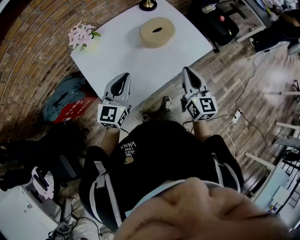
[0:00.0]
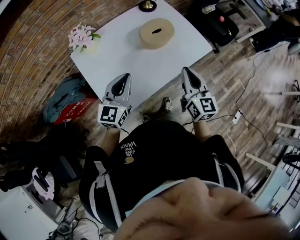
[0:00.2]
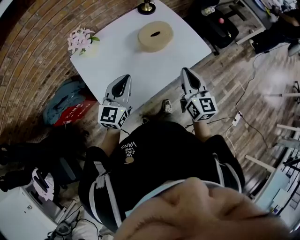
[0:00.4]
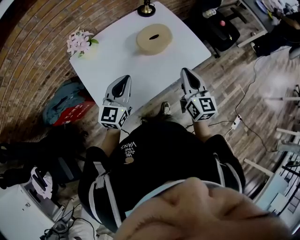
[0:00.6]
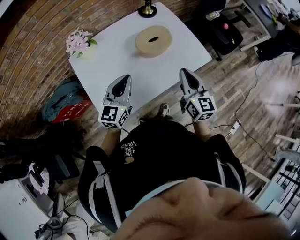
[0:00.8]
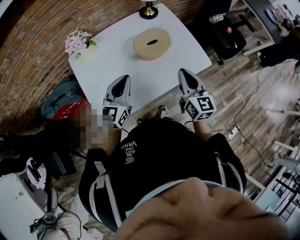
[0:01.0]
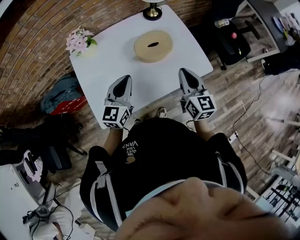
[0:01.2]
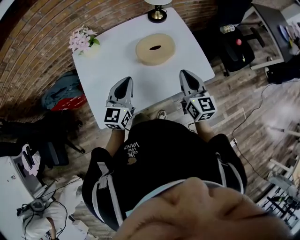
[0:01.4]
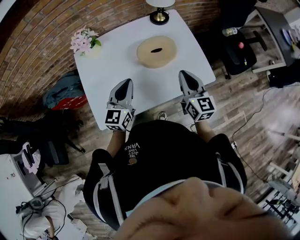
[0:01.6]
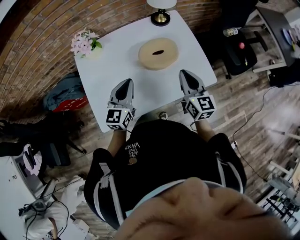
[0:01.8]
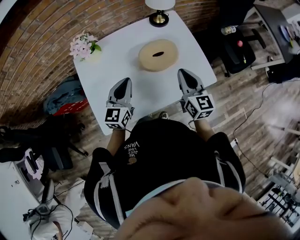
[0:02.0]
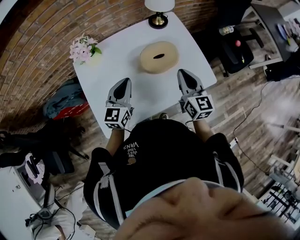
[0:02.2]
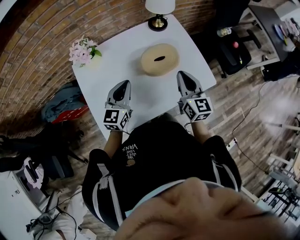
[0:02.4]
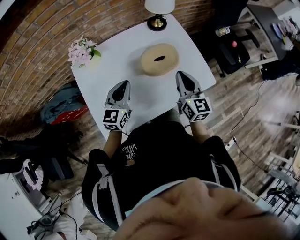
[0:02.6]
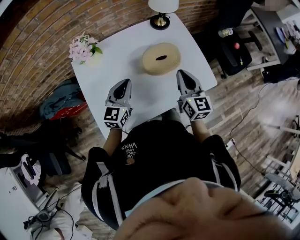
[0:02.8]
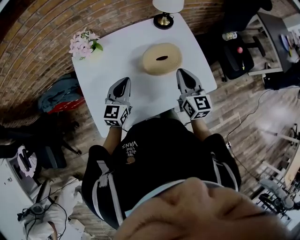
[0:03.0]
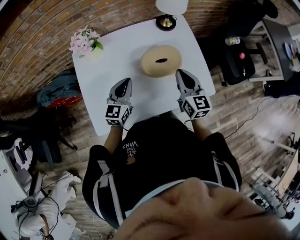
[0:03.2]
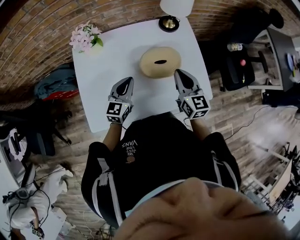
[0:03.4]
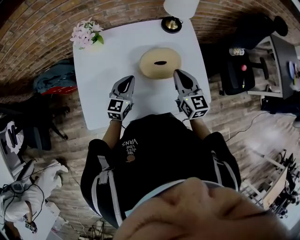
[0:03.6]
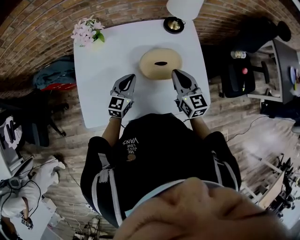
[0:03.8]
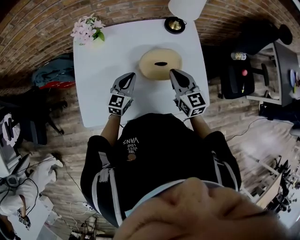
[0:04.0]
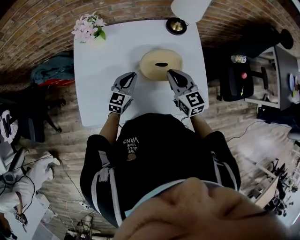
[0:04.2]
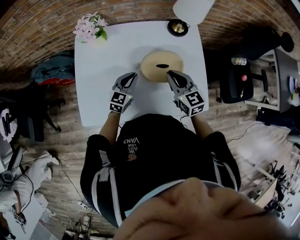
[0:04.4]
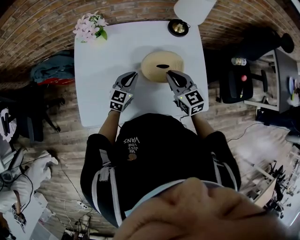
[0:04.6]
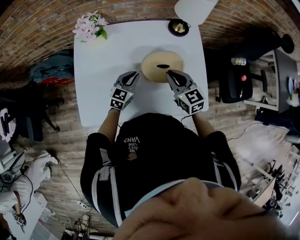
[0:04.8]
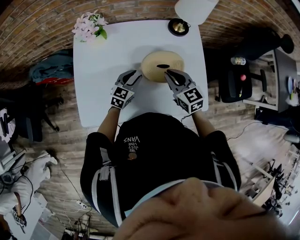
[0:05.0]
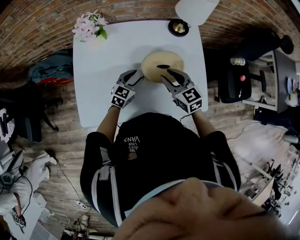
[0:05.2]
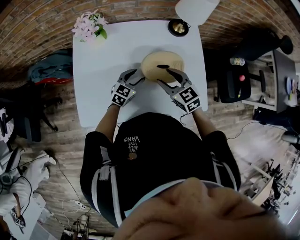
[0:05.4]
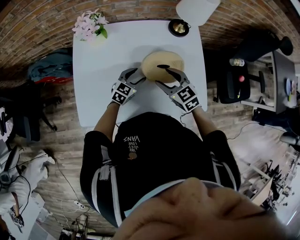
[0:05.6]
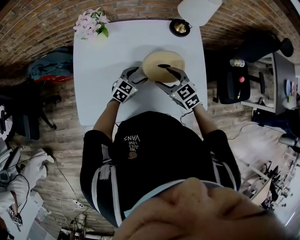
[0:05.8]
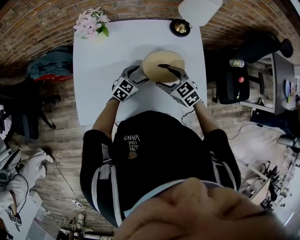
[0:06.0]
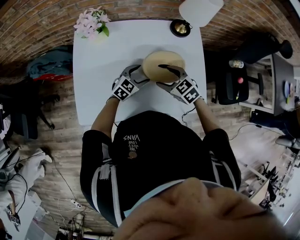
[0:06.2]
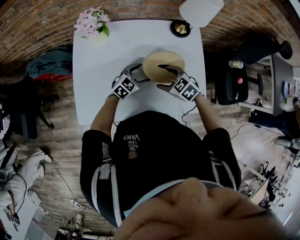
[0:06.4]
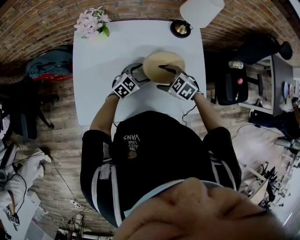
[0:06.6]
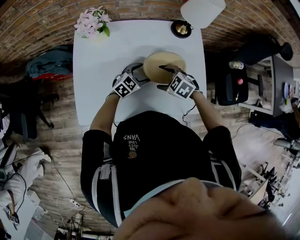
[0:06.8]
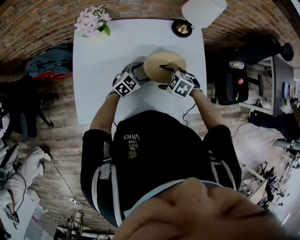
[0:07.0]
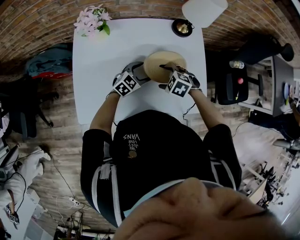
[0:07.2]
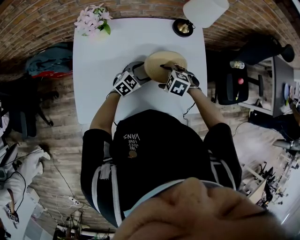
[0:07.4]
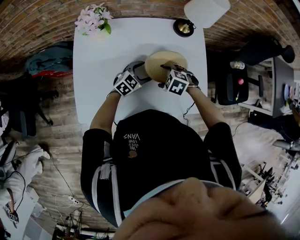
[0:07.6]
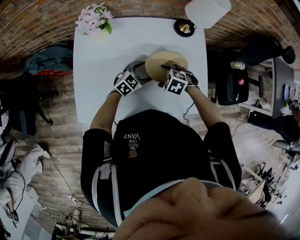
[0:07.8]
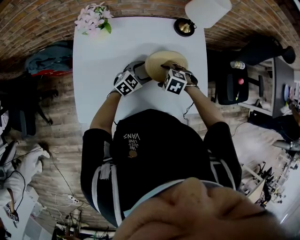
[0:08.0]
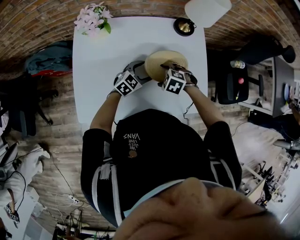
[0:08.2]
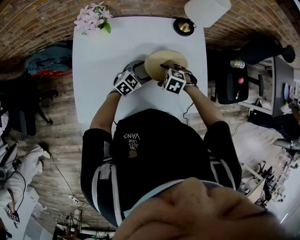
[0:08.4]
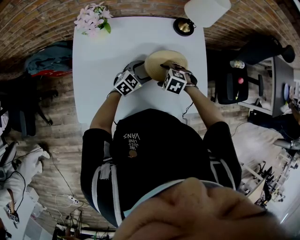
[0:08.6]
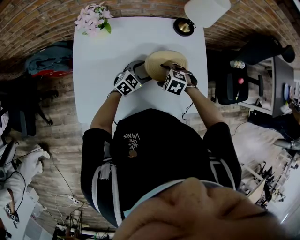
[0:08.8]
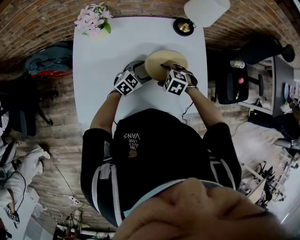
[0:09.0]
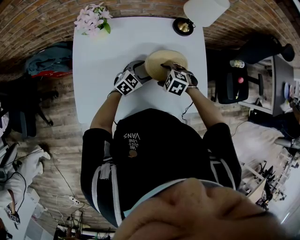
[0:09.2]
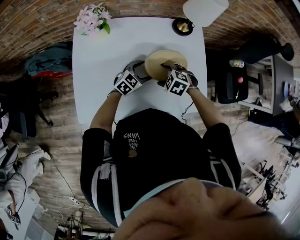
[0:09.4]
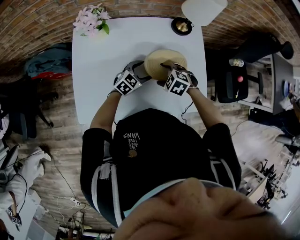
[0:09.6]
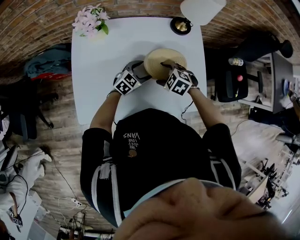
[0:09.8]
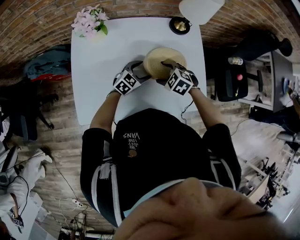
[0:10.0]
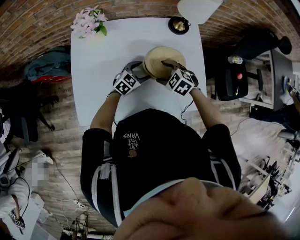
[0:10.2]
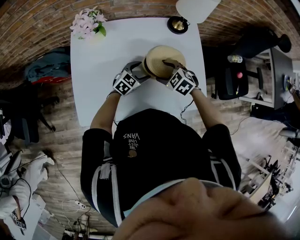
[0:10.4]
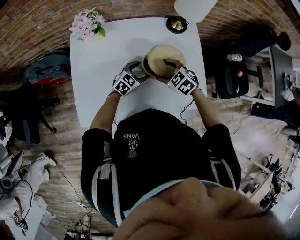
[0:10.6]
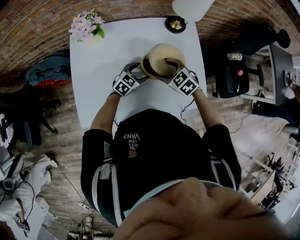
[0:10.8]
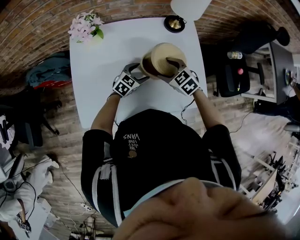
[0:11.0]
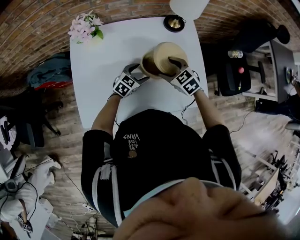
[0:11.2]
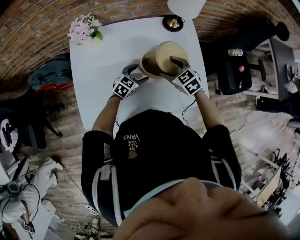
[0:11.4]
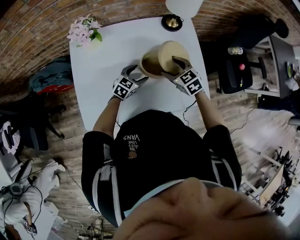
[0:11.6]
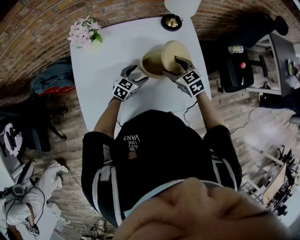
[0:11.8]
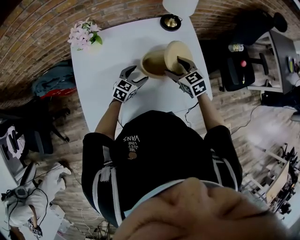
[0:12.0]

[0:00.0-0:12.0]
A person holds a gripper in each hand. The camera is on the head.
0:00.0 to 0:01.6: The two grippers go roughly 15 cm forward and to the right. The right gripper rotates some 20 degrees.
0:01.6 to 0:03.0: Both grippers move forward, some 5 cm.
0:03.0 to 0:04.4: The left gripper is displaced downward and to the right by roughly 10 cm; the right gripper goes some 10 cm forward and downward, and rotates about 30 degrees.
0:04.4 to 0:06.0: Both grippers travel together downward, approximately 5 cm. The left gripper opens its fingers. The right gripper rotates about 30 degrees, and opens.
0:06.0 to 0:07.6: The right gripper shifts approximately 5 cm downward, and points its fingers about 30 degrees further downward.
0:07.6 to 0:09.0: Both grippers stay about where they are.
0:09.0 to 0:10.4: The grippers make only small movements.
0:10.4 to 0:12.0: The right gripper travels to the right by some 5 cm, and swivels roughly 40 degrees.

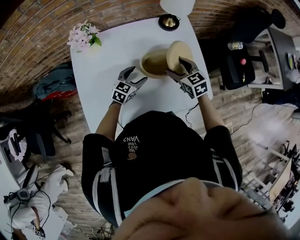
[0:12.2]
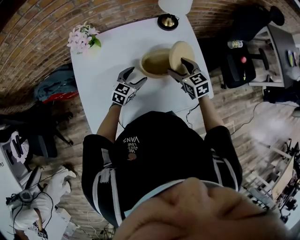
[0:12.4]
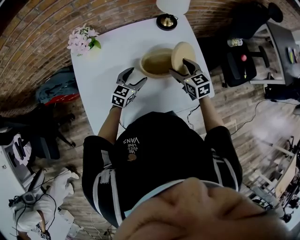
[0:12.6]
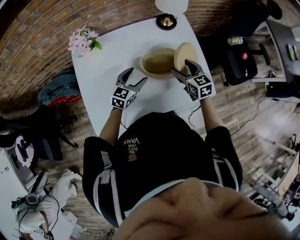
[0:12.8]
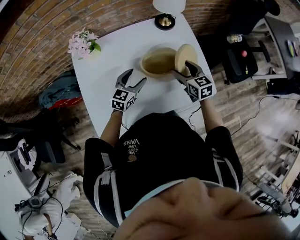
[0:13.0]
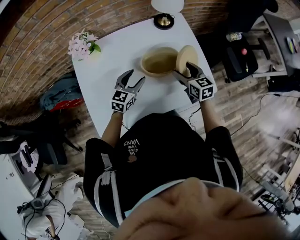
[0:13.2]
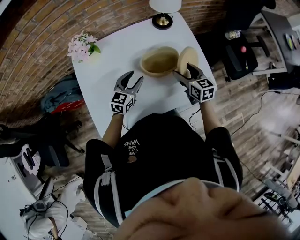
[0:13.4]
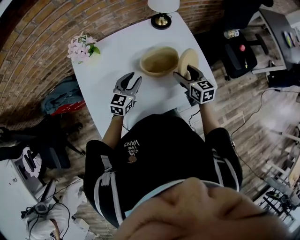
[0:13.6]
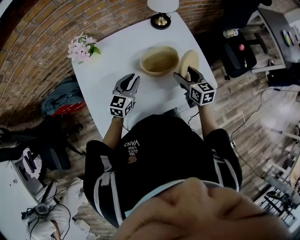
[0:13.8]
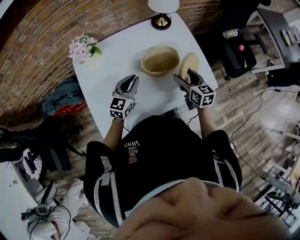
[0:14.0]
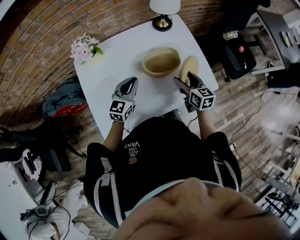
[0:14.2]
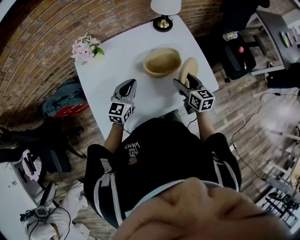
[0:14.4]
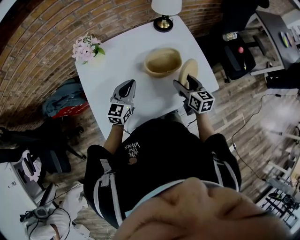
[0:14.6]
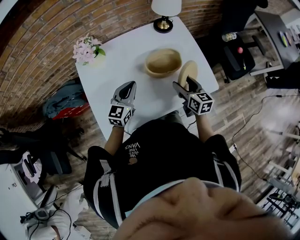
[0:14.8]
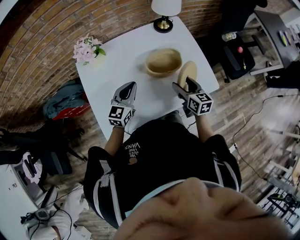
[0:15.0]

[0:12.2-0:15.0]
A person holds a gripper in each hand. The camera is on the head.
0:12.2 to 0:13.6: The left gripper heads upward, covering approximately 5 cm, and closes up. The right gripper ends up some 5 cm from where it was, and turns by approximately 30 degrees.
0:13.6 to 0:15.0: The left gripper shifts by approximately 5 cm, and closes up. Meanwhile the right gripper shifts roughly 5 cm backward.

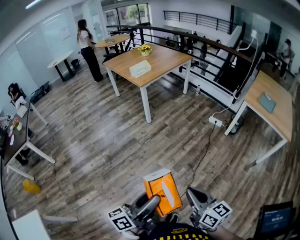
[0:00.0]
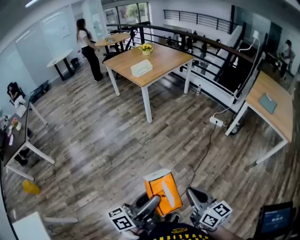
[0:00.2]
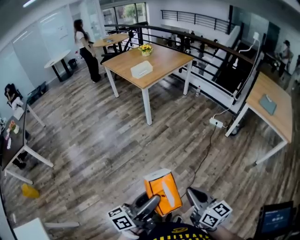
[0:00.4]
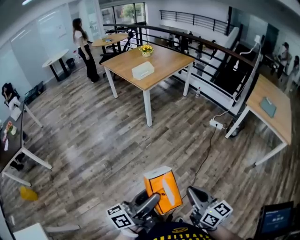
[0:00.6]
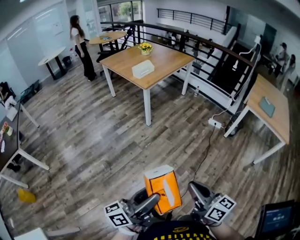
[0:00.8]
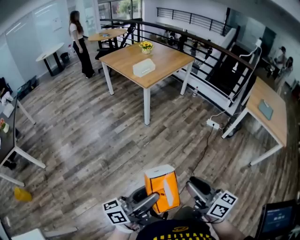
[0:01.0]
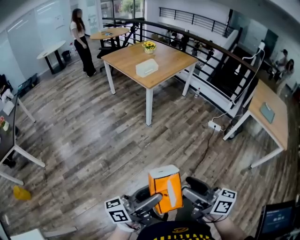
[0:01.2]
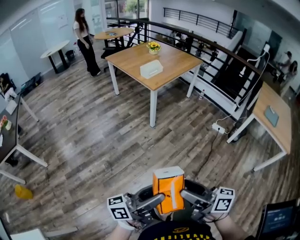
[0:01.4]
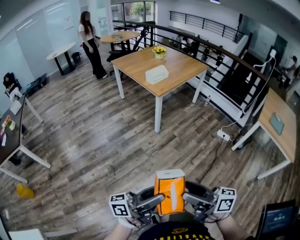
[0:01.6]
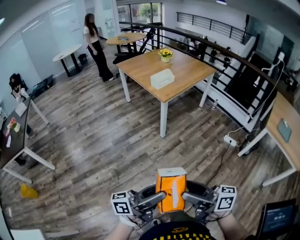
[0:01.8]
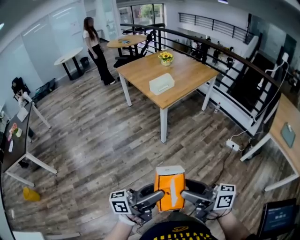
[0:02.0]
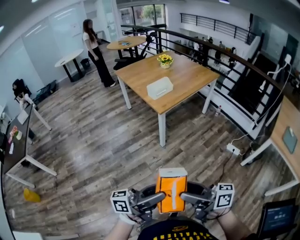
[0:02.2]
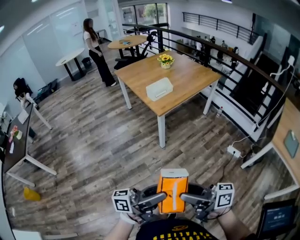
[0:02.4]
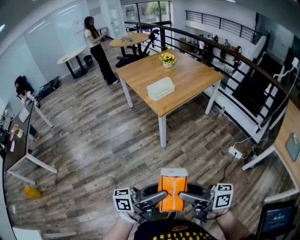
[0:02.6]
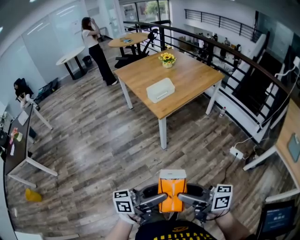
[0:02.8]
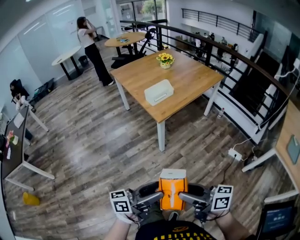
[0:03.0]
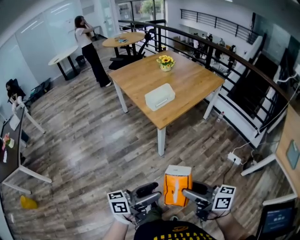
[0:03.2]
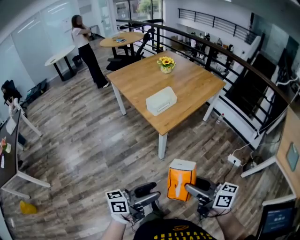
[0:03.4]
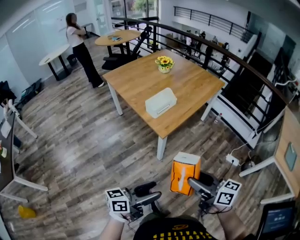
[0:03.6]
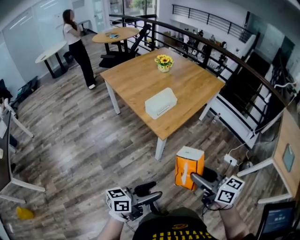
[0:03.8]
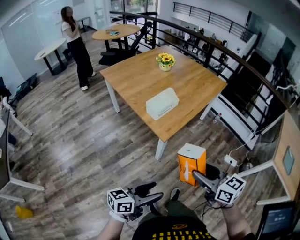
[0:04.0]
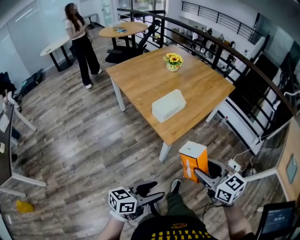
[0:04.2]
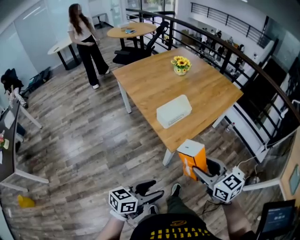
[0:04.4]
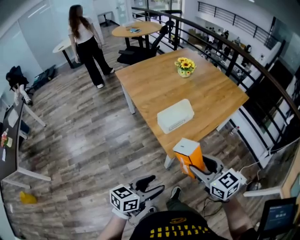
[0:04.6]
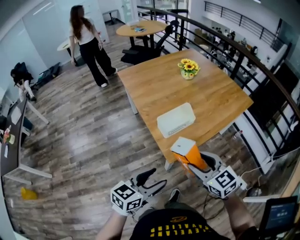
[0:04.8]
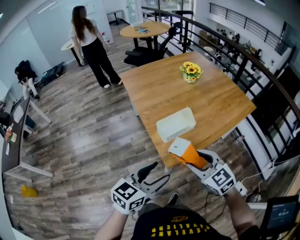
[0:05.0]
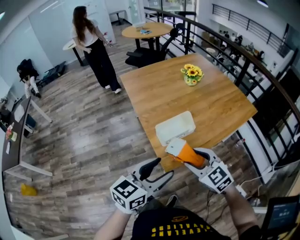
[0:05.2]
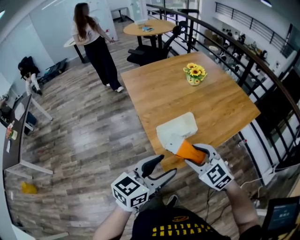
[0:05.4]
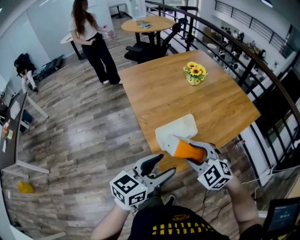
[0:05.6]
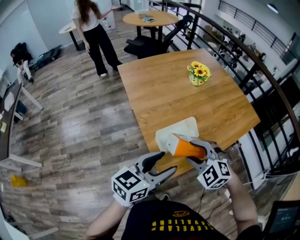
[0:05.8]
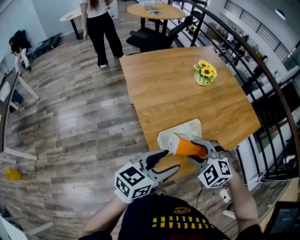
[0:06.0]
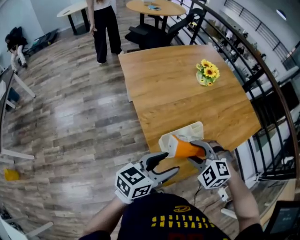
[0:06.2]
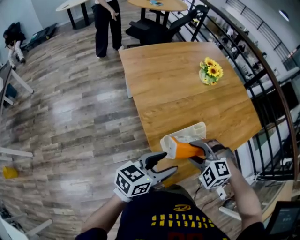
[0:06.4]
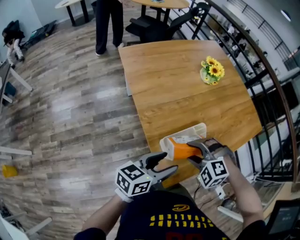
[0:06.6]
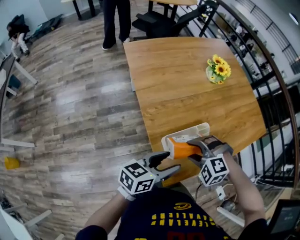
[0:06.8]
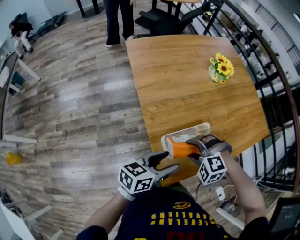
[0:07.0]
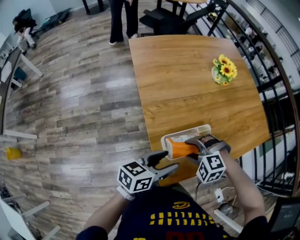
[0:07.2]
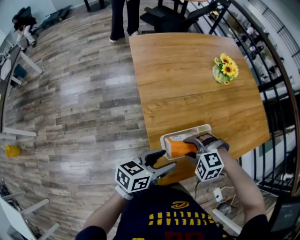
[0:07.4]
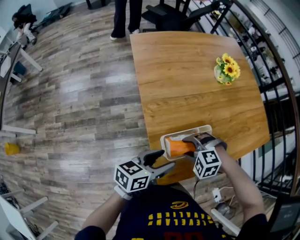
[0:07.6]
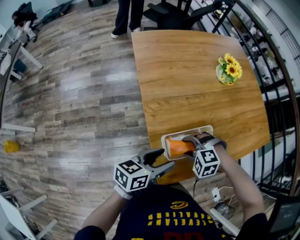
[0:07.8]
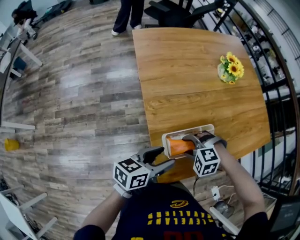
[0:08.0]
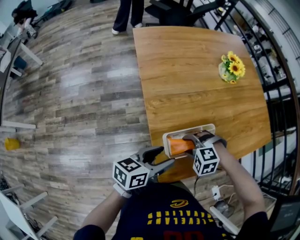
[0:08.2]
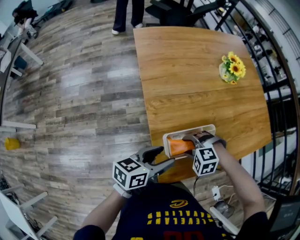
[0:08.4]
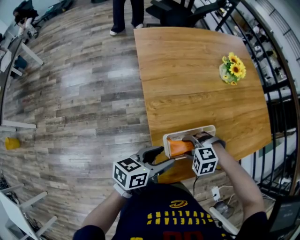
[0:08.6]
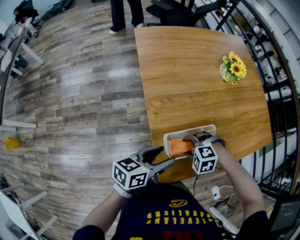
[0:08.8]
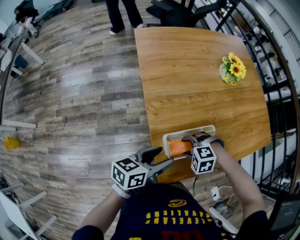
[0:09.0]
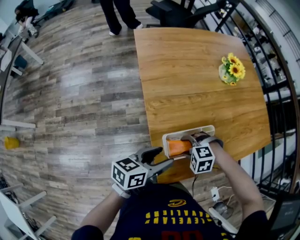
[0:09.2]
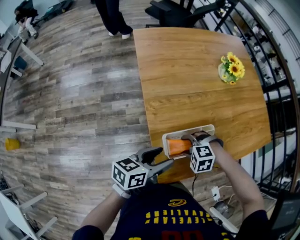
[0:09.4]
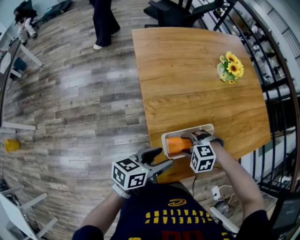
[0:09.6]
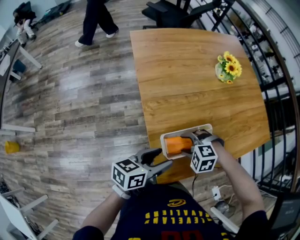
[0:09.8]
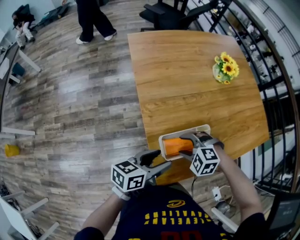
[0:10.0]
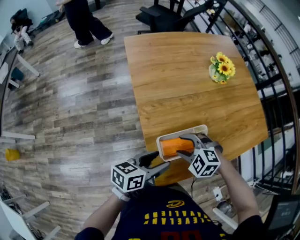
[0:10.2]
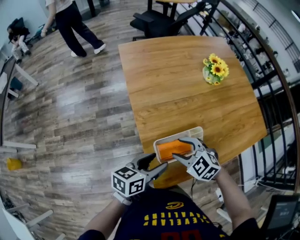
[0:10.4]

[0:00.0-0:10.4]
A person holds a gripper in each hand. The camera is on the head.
0:00.0 to 0:01.4: The grippers both shift to the left and forward by roughly 25 cm. The right gripper rotates about 30 degrees, and opens its fingers.
0:01.4 to 0:03.0: The right gripper ends up roughly 35 cm from where it was. The left gripper ends up some 35 cm from where it was.
0:03.0 to 0:04.4: The right gripper moves forward, some 35 cm, and swivels roughly 50 degrees, while the left gripper is displaced forward and to the left by some 30 cm, and changes its angle by roughly 30 degrees.
0:04.4 to 0:06.0: The two grippers go roughly 30 cm forward. The right gripper twists approximately 60 degrees counterclockwise, seen from behind.
0:06.0 to 0:07.4: Both grippers move downward and forward, approximately 10 cm. The right gripper rotates about 30 degrees, while the left gripper turns by some 20 degrees.
0:07.4 to 0:09.0: The right gripper moves downward, approximately 5 cm.
0:09.0 to 0:10.4: The right gripper heads upward, covering some 10 cm, and turns by roughly 40 degrees.
